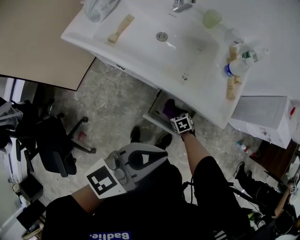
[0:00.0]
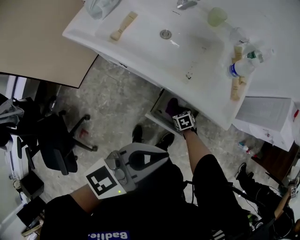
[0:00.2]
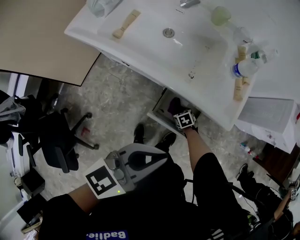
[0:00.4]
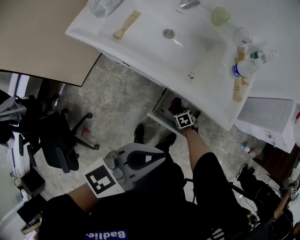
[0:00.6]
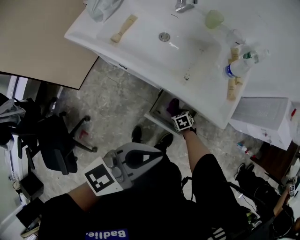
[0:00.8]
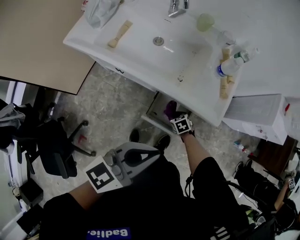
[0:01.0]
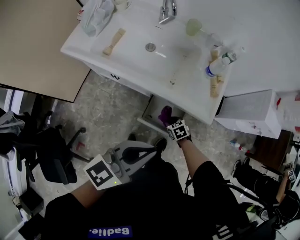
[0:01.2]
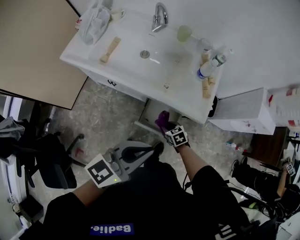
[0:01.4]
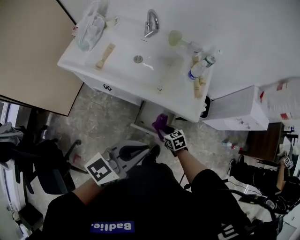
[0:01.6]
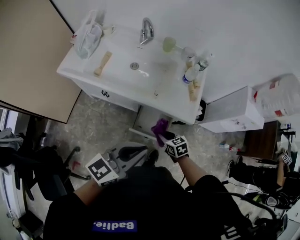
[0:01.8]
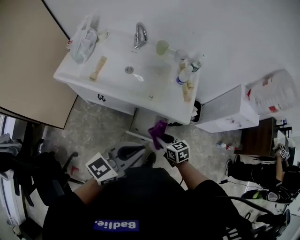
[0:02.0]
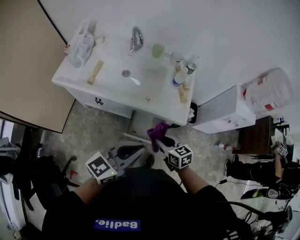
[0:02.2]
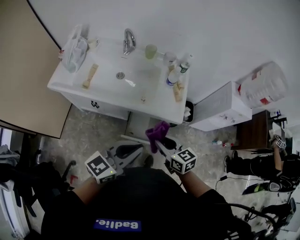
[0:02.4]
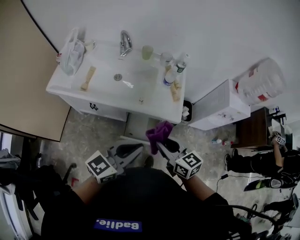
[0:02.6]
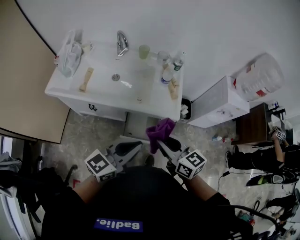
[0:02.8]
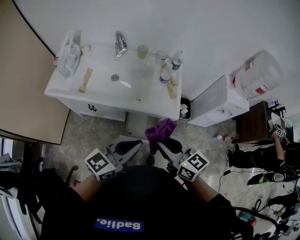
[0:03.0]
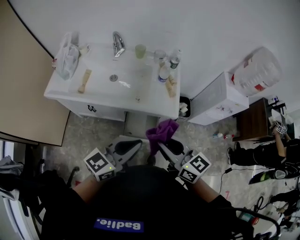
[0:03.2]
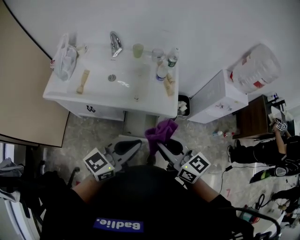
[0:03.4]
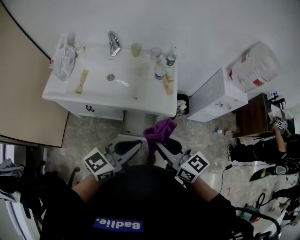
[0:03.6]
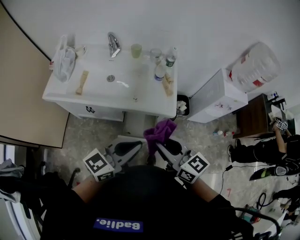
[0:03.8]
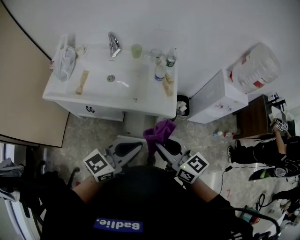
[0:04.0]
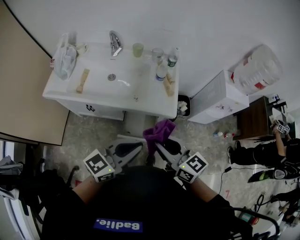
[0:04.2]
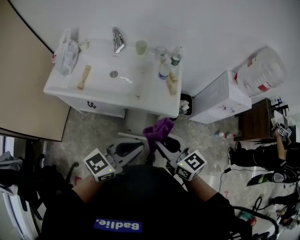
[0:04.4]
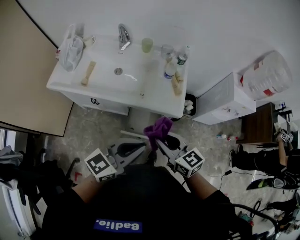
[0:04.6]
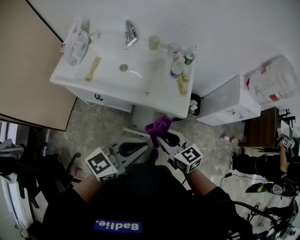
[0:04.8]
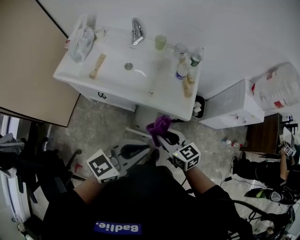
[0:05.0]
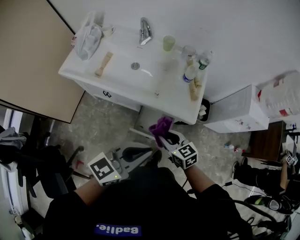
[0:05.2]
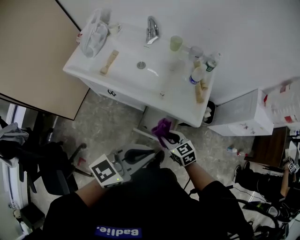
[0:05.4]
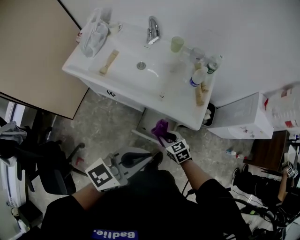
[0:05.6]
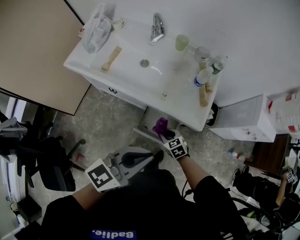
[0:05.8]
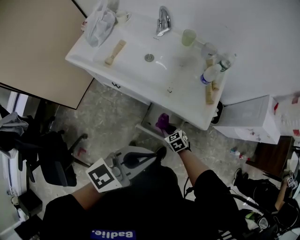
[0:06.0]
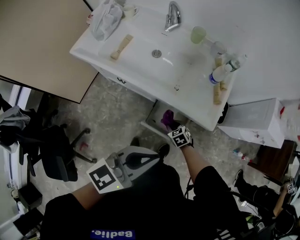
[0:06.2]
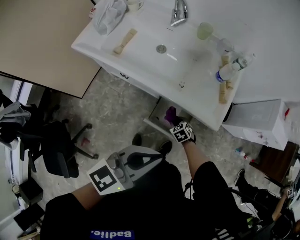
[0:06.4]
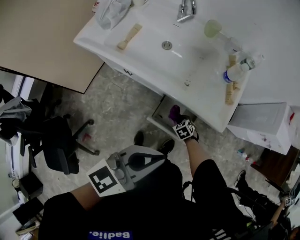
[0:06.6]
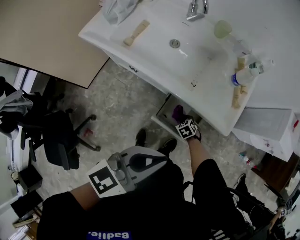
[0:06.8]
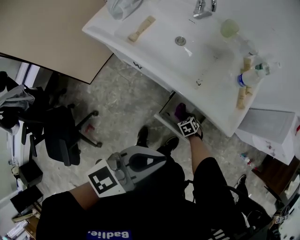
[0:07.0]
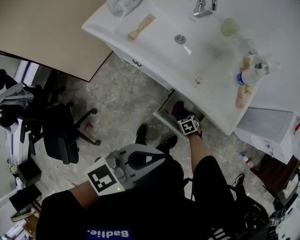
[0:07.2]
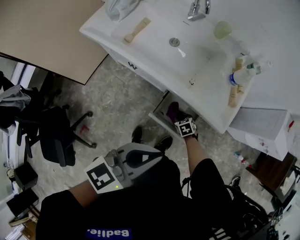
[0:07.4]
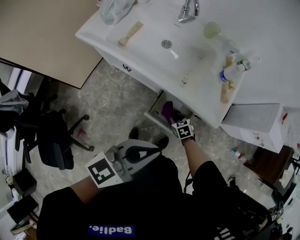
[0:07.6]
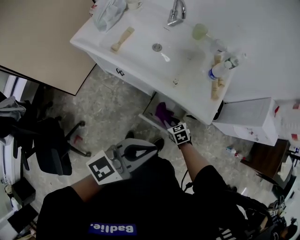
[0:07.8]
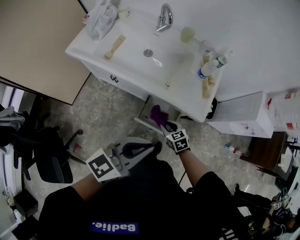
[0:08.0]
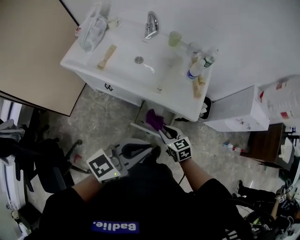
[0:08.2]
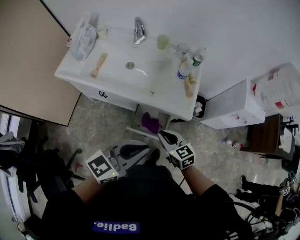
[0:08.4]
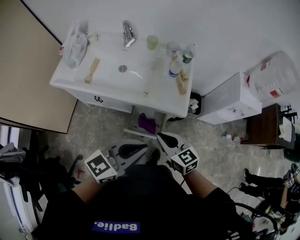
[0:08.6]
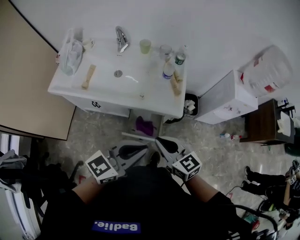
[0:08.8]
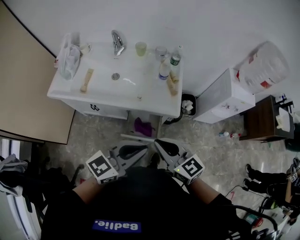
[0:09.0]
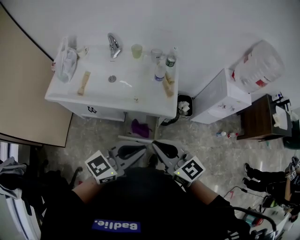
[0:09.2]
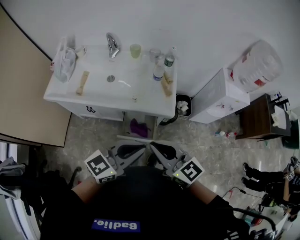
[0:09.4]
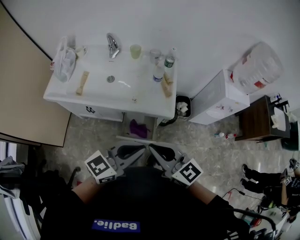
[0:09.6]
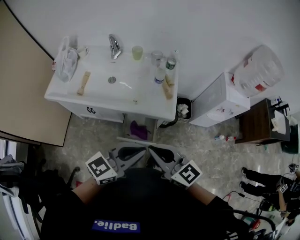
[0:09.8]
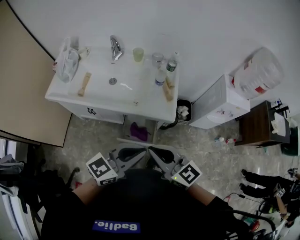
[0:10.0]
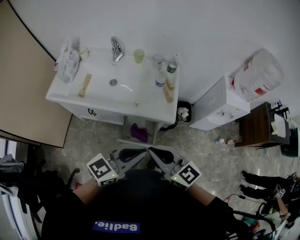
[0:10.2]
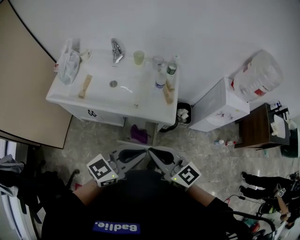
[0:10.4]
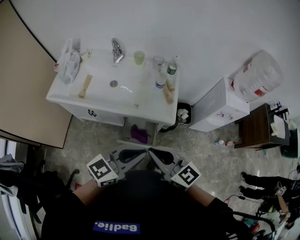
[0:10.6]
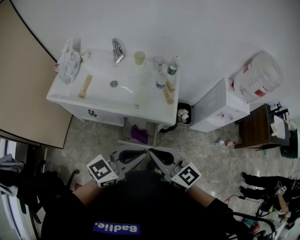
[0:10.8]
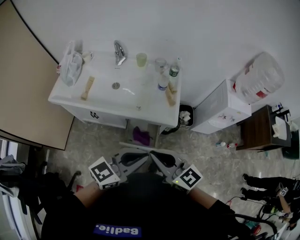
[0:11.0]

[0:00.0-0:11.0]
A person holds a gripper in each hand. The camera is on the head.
0.0 to 1.6 s: The right gripper shifts roughly 20 cm upward, and closes up. The left gripper moves upward, roughly 5 cm.
1.6 to 3.2 s: The right gripper goes some 35 cm upward, and angles its fingers upward, by about 40 degrees.
3.2 to 4.8 s: The right gripper heads downward, covering roughly 10 cm.
4.8 to 6.2 s: The right gripper heads downward, covering roughly 35 cm, and points its fingers roughly 40 degrees further downward.
6.2 to 7.8 s: The right gripper reaches approximately 10 cm downward, then returns.
7.8 to 9.4 s: The left gripper goes approximately 10 cm to the right and upward; the right gripper shifts approximately 40 cm upward, tips its fingers upward by about 50 degrees, and closes up.
9.4 to 11.0 s: The two grippers keep their place.

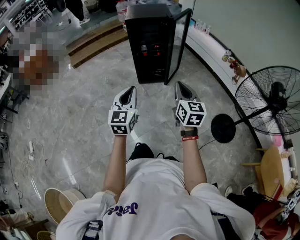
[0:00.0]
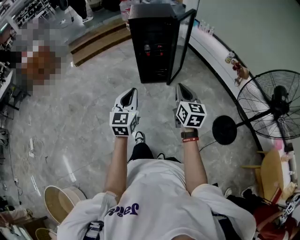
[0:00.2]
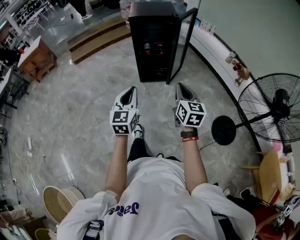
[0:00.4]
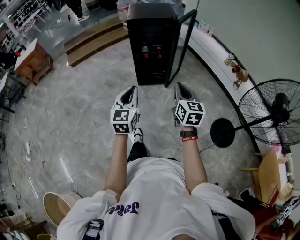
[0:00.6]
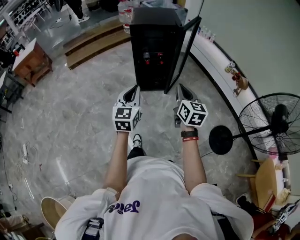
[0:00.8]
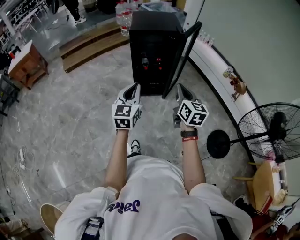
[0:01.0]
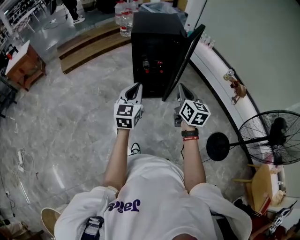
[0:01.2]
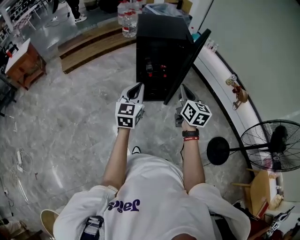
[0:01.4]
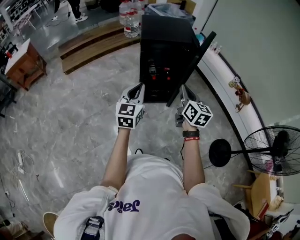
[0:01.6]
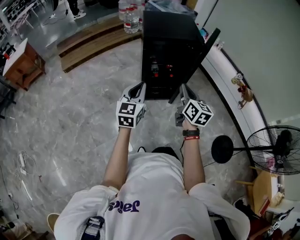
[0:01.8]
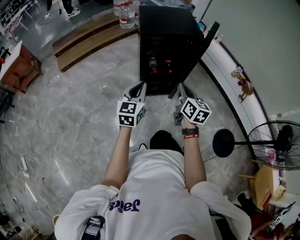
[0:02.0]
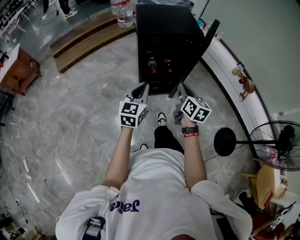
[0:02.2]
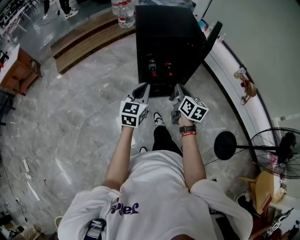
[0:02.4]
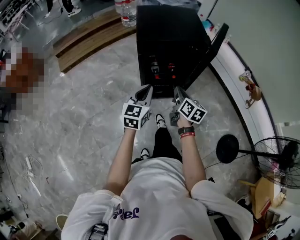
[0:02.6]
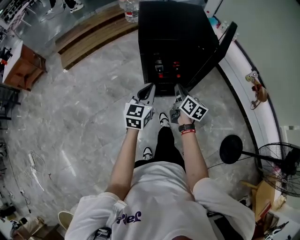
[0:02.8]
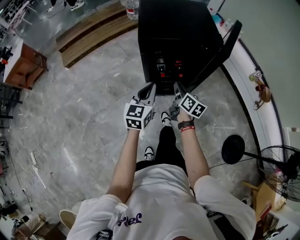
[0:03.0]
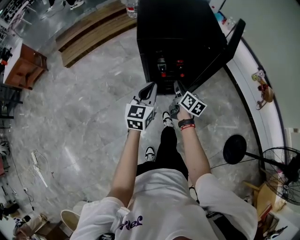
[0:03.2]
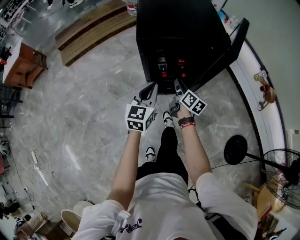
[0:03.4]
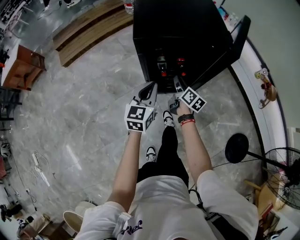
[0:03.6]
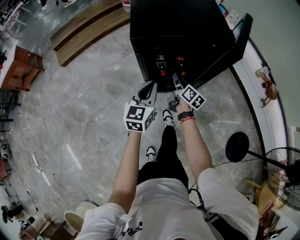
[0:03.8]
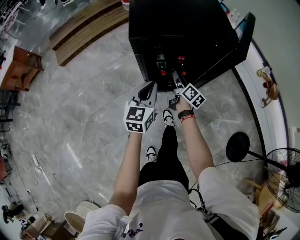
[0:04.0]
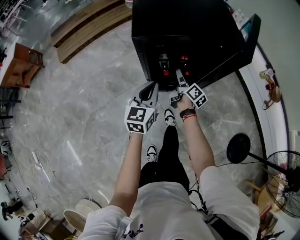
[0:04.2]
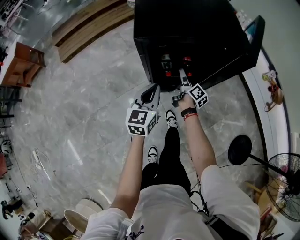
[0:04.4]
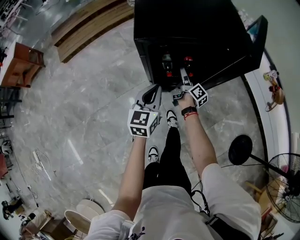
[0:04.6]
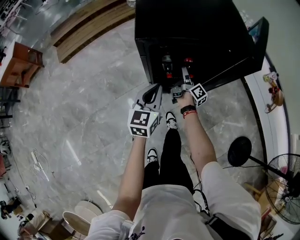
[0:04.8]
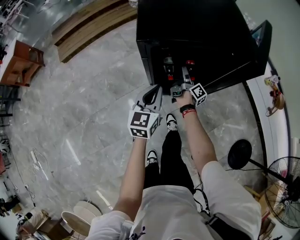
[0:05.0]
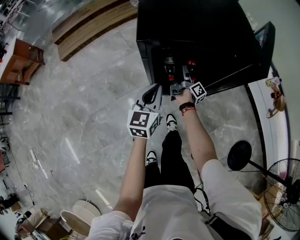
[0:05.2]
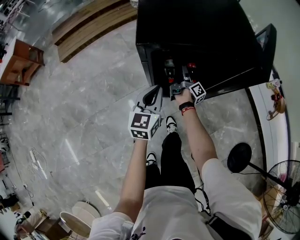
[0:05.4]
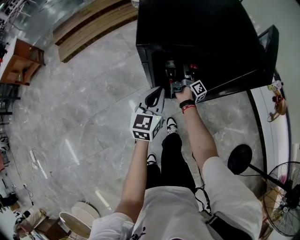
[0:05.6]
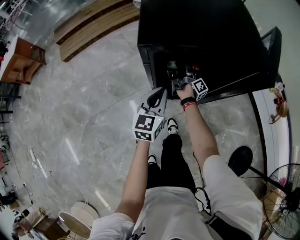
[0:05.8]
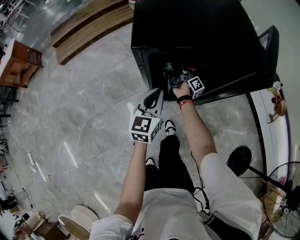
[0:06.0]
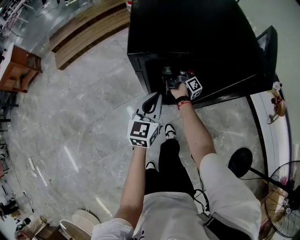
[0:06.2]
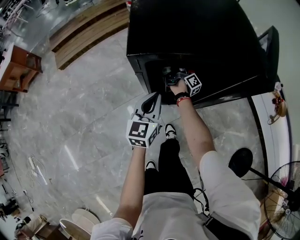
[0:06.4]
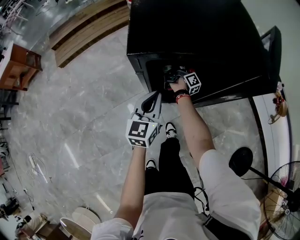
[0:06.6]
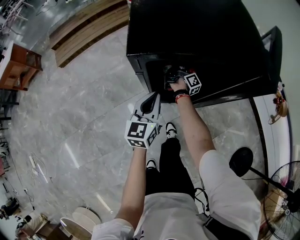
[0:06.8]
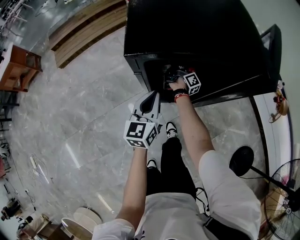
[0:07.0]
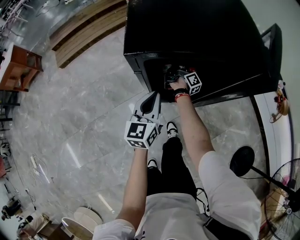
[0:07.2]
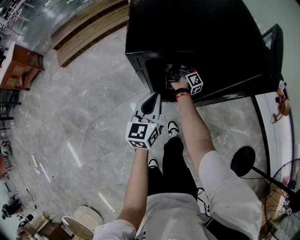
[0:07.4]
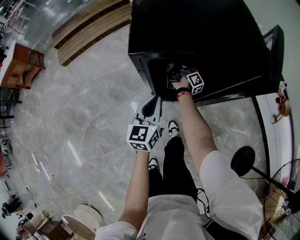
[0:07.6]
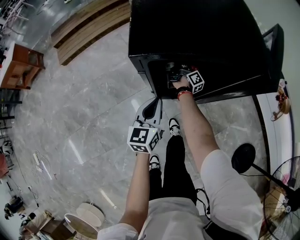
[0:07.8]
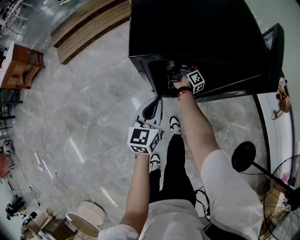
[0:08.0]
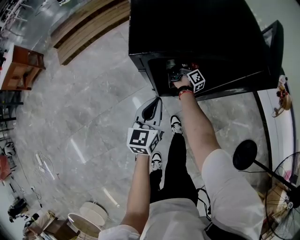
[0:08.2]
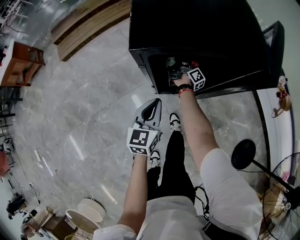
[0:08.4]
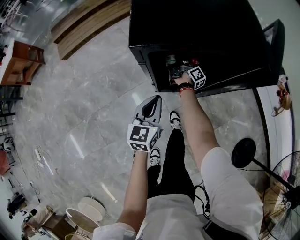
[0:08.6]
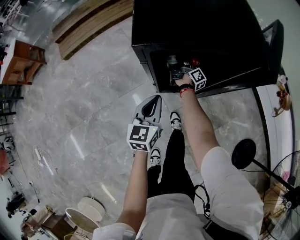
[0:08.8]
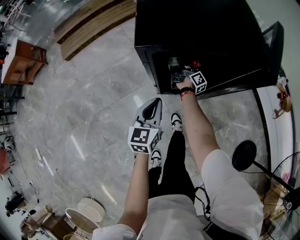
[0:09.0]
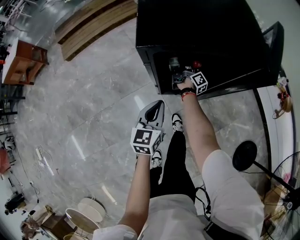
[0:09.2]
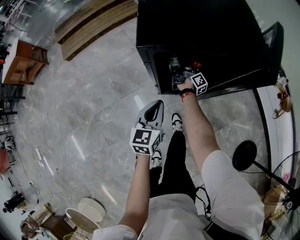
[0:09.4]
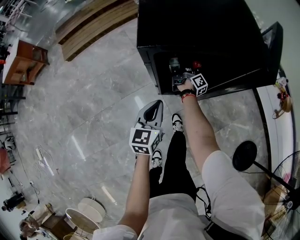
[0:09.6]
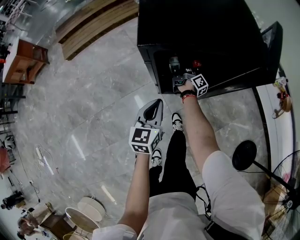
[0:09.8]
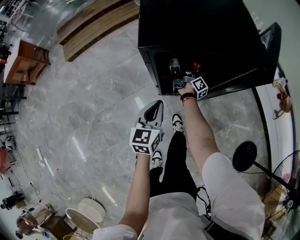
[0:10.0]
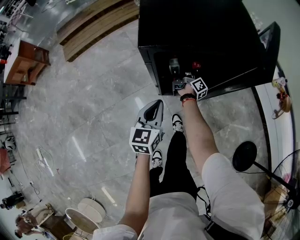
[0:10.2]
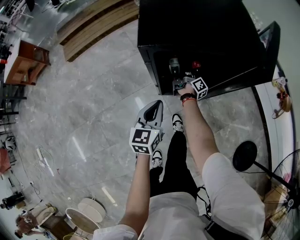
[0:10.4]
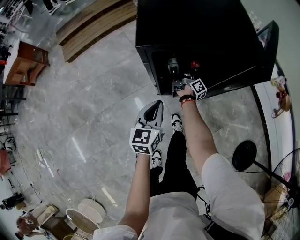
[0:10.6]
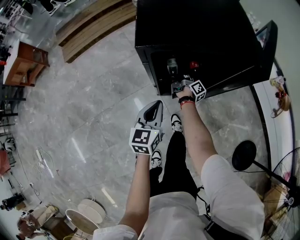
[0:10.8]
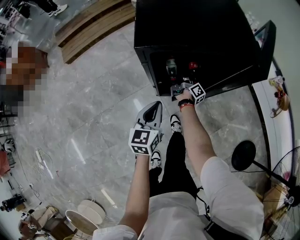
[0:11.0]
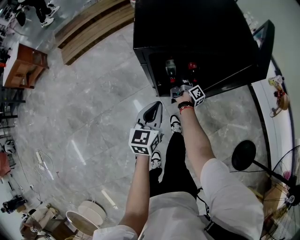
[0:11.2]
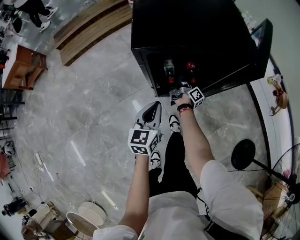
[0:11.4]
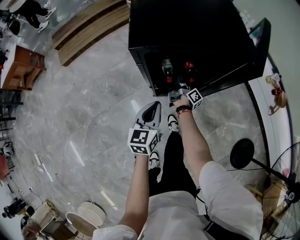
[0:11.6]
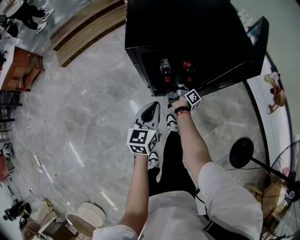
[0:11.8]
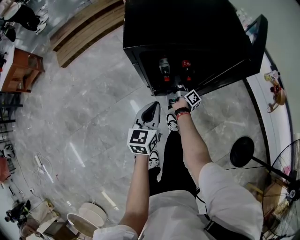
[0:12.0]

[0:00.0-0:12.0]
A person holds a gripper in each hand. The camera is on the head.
0.0 to 1.6 s: The left gripper shifts by roughly 40 cm.
1.6 to 3.0 s: The left gripper moves some 25 cm.
3.0 to 4.4 s: The left gripper travels downward by roughly 10 cm.
4.4 to 6.0 s: The left gripper ends up approximately 10 cm from where it was.
7.6 to 9.0 s: The left gripper moves about 5 cm.

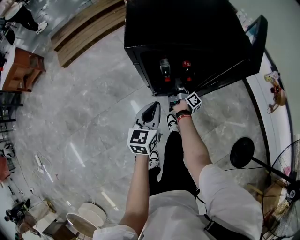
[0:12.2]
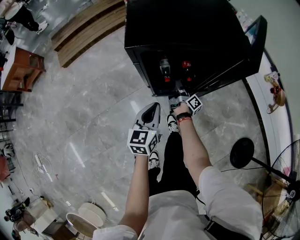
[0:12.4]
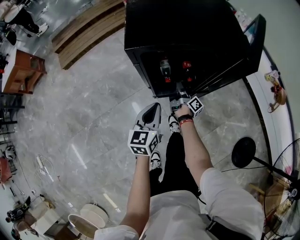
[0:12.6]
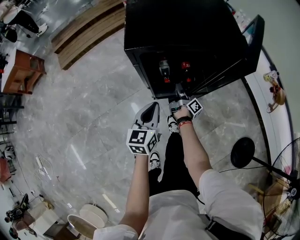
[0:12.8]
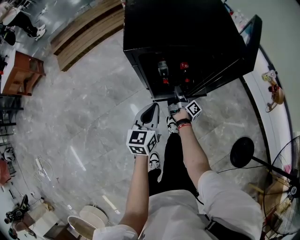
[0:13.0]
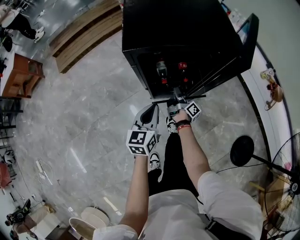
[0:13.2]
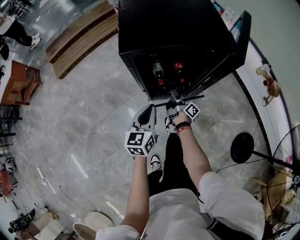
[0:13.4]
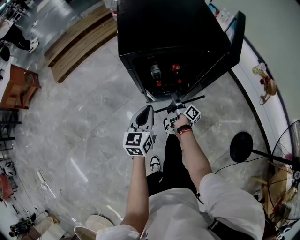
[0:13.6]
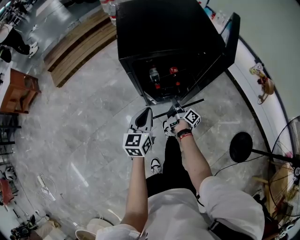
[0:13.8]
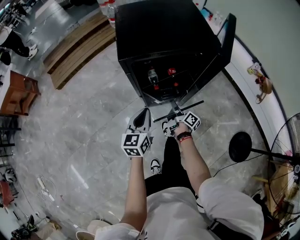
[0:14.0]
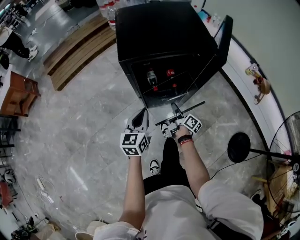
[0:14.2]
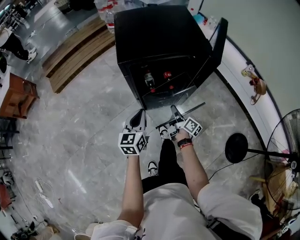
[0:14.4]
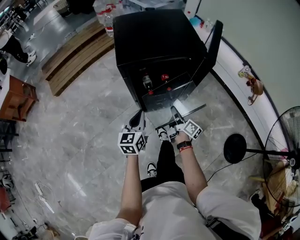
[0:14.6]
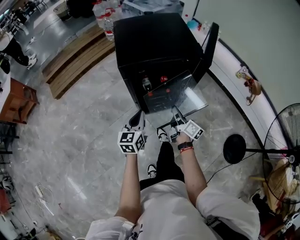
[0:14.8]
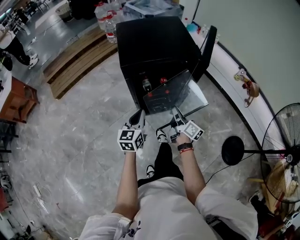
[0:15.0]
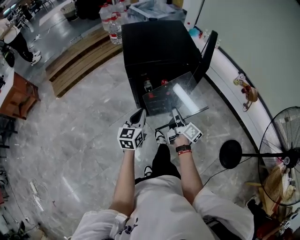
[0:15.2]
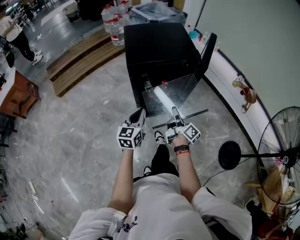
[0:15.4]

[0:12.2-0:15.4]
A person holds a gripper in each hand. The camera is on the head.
13.8 to 15.4 s: The left gripper heads upward, covering about 10 cm.
